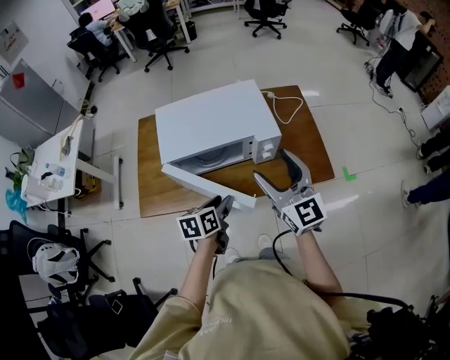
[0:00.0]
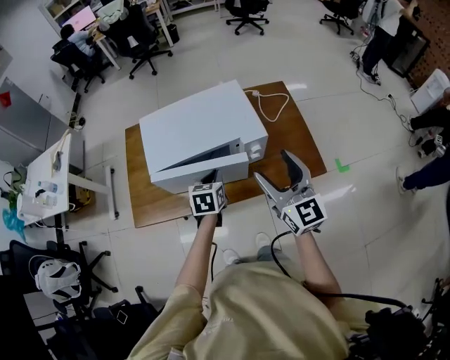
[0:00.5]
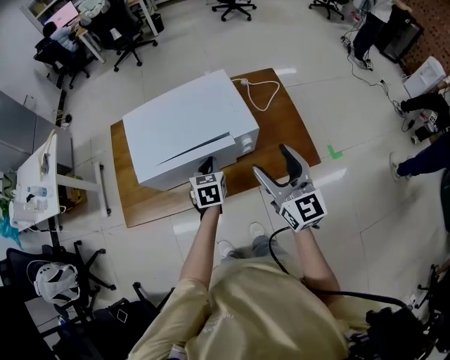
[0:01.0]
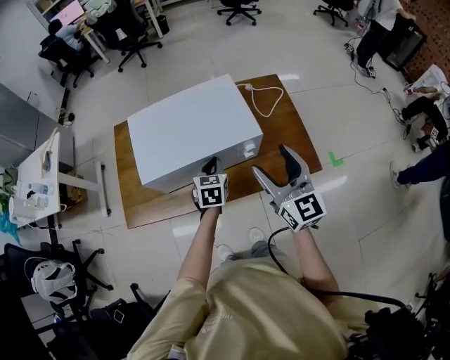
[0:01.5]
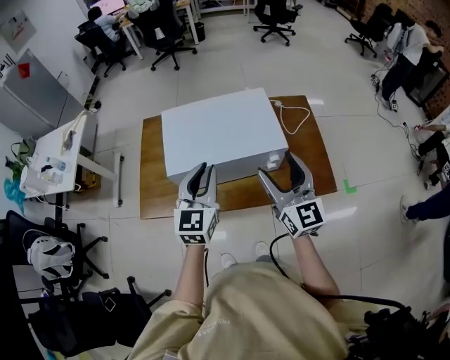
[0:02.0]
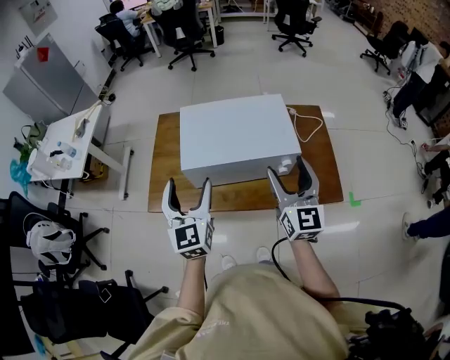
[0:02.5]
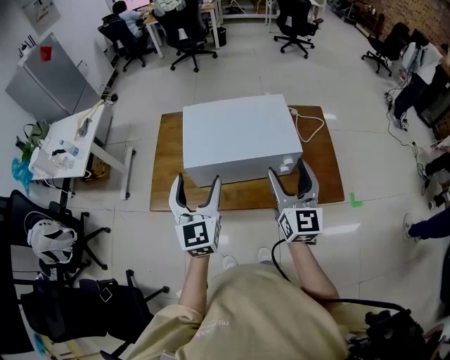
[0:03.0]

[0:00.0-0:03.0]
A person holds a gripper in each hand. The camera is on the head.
0:00.0 to 0:01.5: The left gripper travels forward by some 20 cm, rotates about 30 degrees, and closes its fingers. Meanwhile the right gripper is displaced forward by roughly 10 cm.
0:01.5 to 0:03.0: The right gripper goes roughly 10 cm backward and to the left; the left gripper heads upward, backward and to the left, covering about 30 cm, tips its fingers upward by some 40 degrees, and opens up.

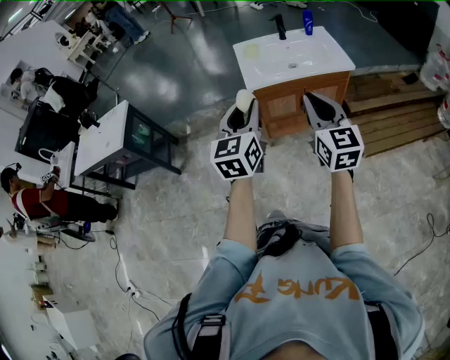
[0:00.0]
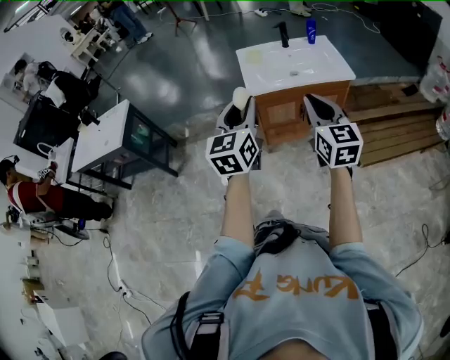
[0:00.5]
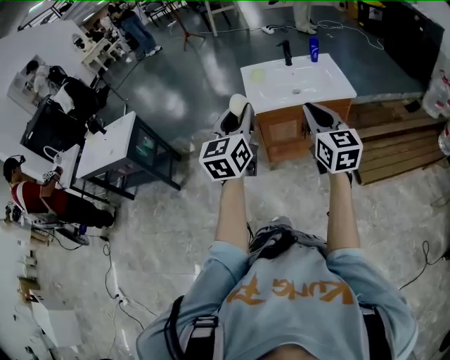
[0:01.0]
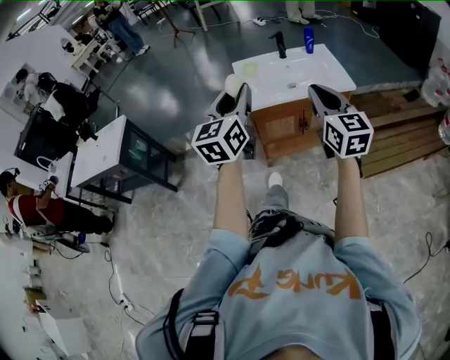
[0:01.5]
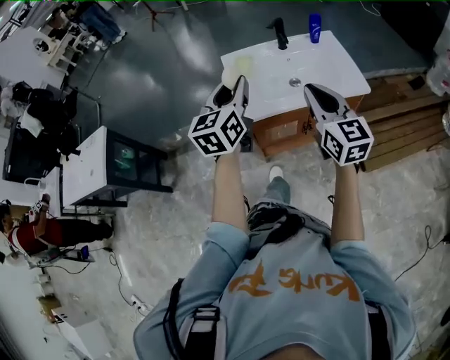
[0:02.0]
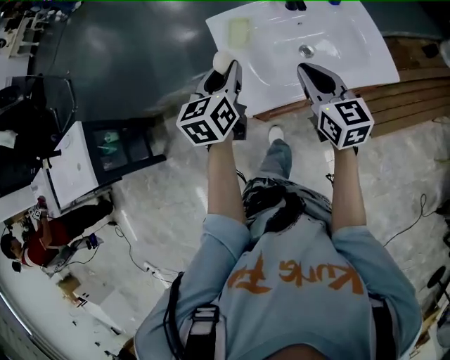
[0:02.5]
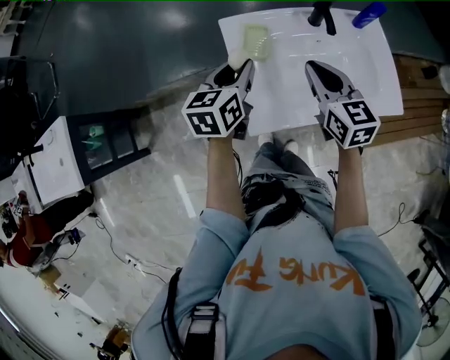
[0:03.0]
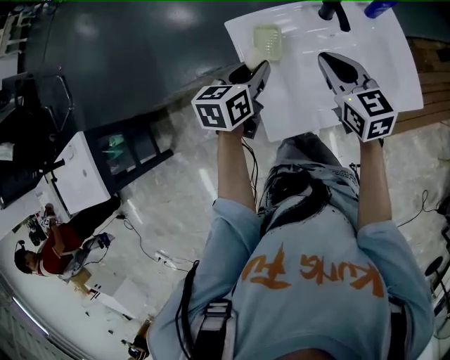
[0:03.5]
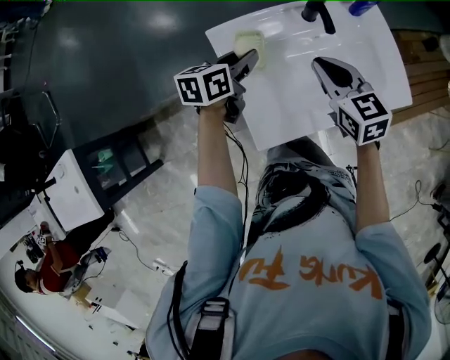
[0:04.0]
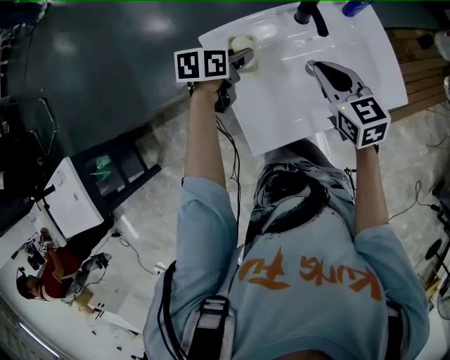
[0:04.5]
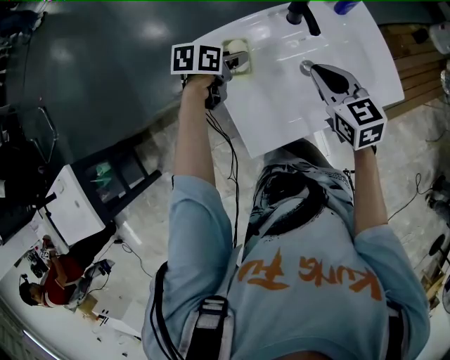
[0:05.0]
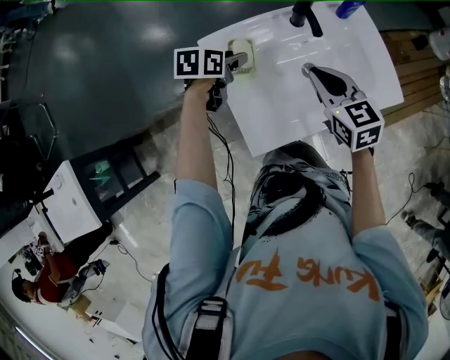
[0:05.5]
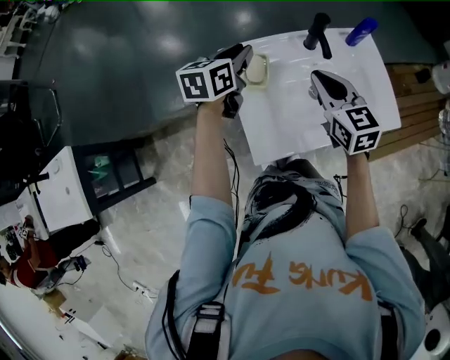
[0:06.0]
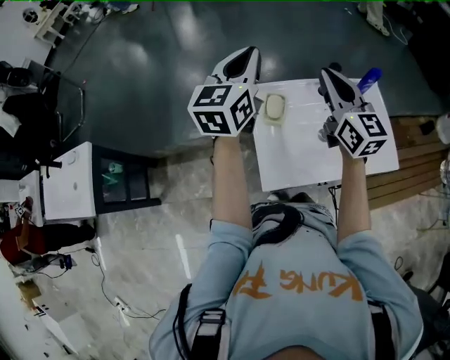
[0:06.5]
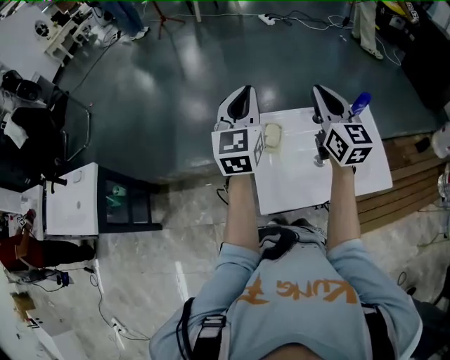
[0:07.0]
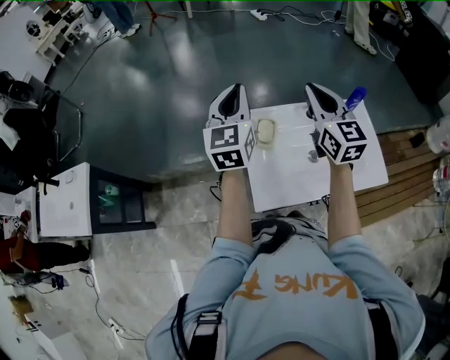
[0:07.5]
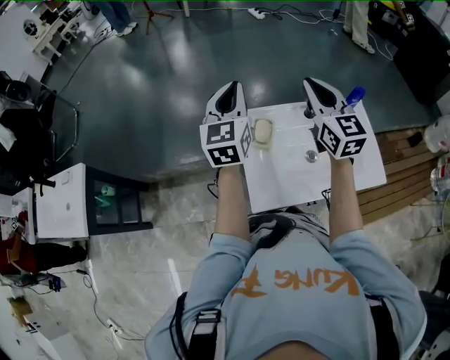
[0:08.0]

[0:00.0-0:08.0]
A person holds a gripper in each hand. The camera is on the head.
0:00.0 to 0:02.0: The two grippers go approximately 30 cm forward.
0:02.0 to 0:04.0: Both grippers travel together forward and downward, roughly 35 cm. The left gripper turns by approximately 40 degrees, while the right gripper changes its angle by roughly 30 degrees.
0:04.0 to 0:06.0: The left gripper is displaced upward by approximately 10 cm.
0:06.0 to 0:08.0: The left gripper is displaced upward by roughly 15 cm, and turns by some 40 degrees. Meanwhile the right gripper shifts approximately 15 cm upward and forward, and turns by approximately 20 degrees.

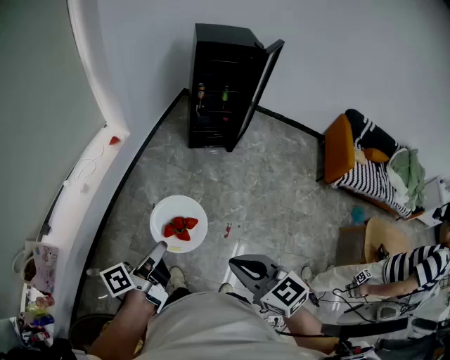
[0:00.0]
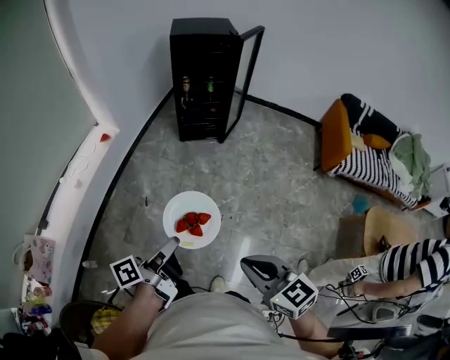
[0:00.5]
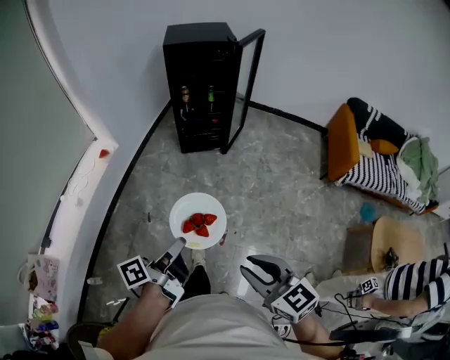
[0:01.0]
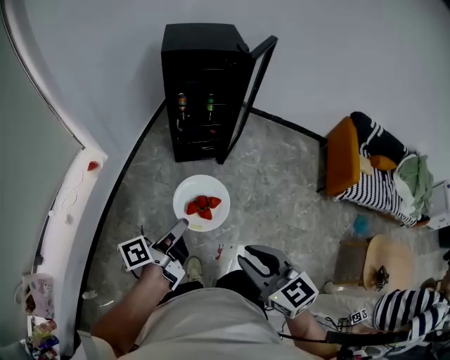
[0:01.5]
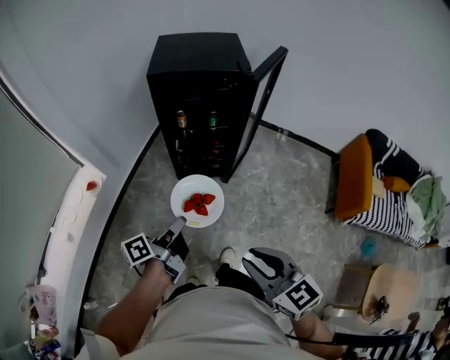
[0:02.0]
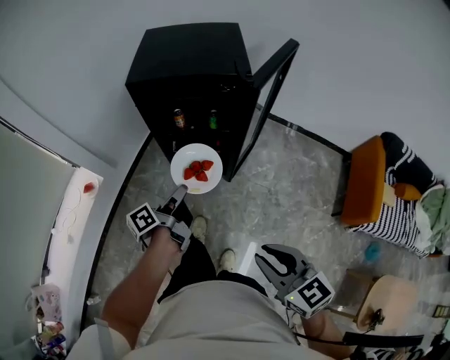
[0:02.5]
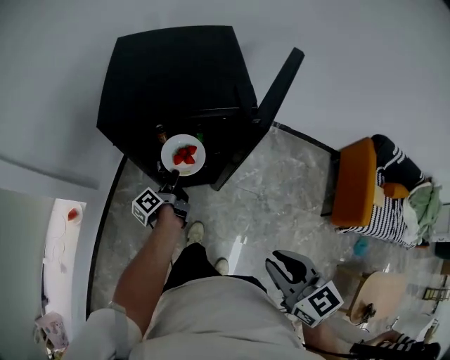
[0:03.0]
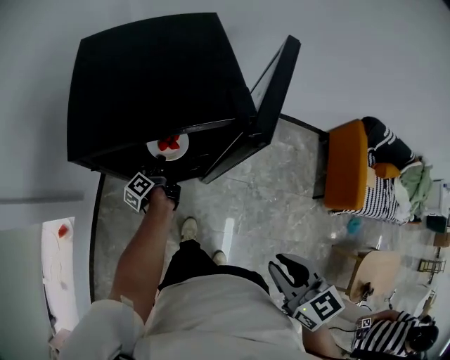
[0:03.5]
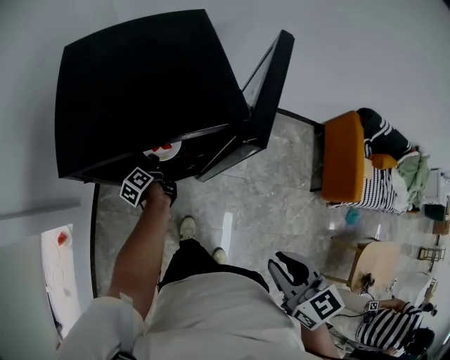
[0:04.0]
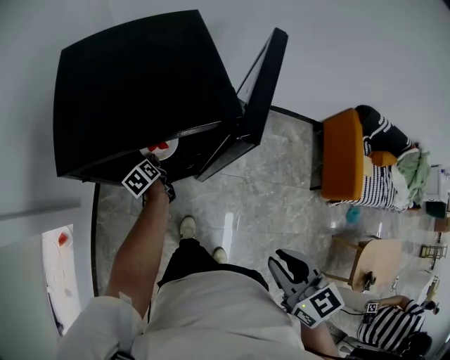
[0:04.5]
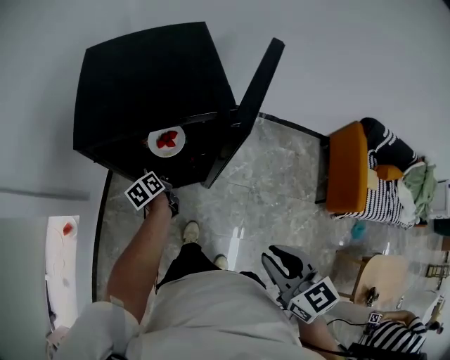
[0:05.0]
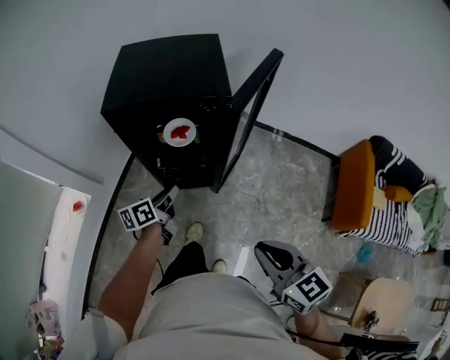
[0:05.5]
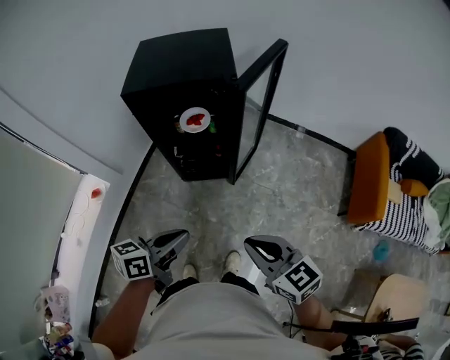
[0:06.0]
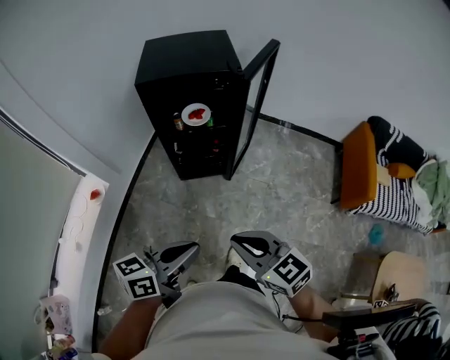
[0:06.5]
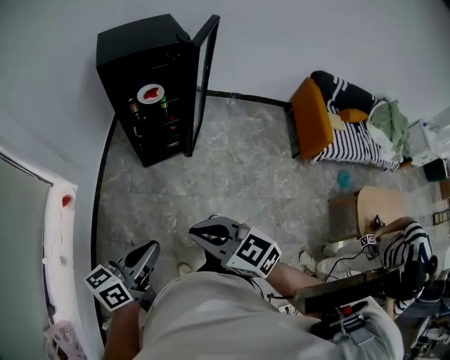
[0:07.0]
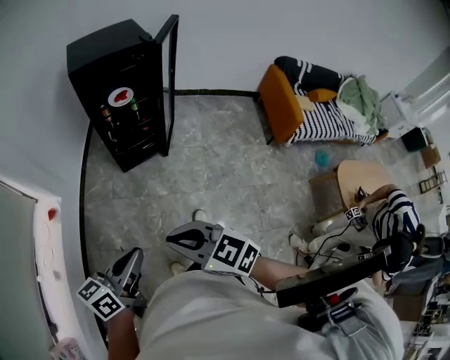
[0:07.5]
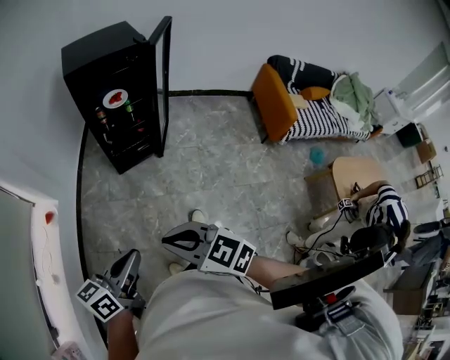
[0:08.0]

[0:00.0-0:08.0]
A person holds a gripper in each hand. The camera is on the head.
0:00.0 to 0:02.0: Both grippers are carried forward and to the right, some 50 cm.
0:02.0 to 0:04.0: The left gripper is displaced forward and downward by roughly 60 cm, and changes its angle by some 30 degrees. The right gripper goes about 30 cm forward, and changes its angle by roughly 30 degrees.
0:04.0 to 0:06.0: The right gripper travels backward by roughly 15 cm, and turns by some 30 degrees; the left gripper travels backward and upward by approximately 50 cm, and changes its angle by some 50 degrees.
0:06.0 to 0:08.0: The two grippers go some 35 cm backward and to the left.

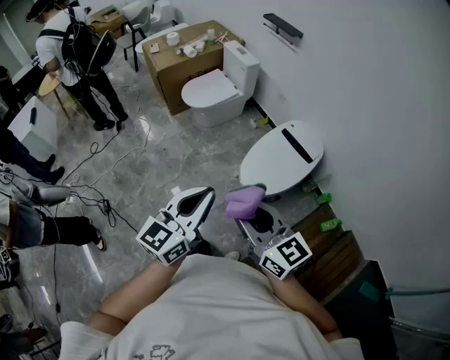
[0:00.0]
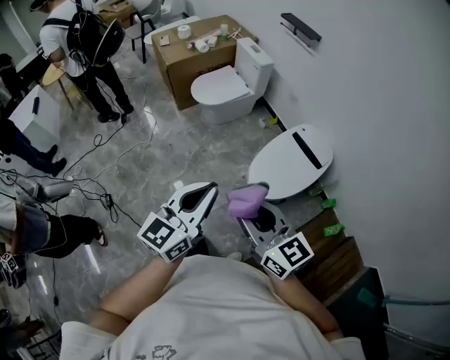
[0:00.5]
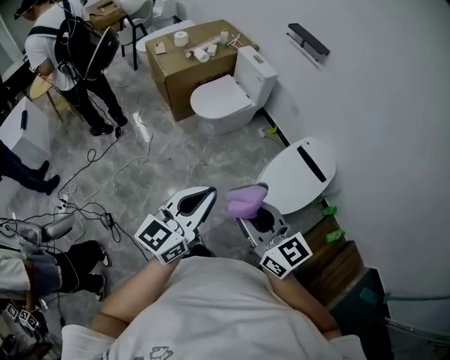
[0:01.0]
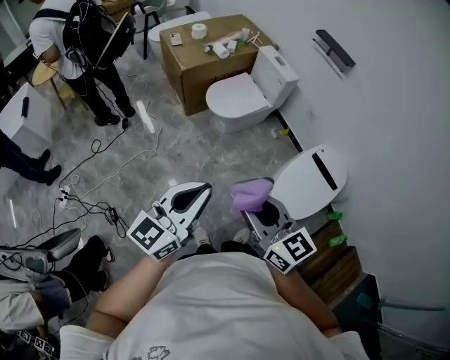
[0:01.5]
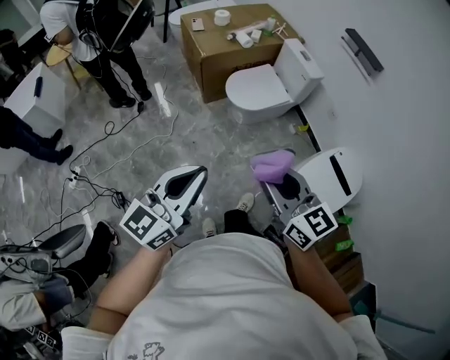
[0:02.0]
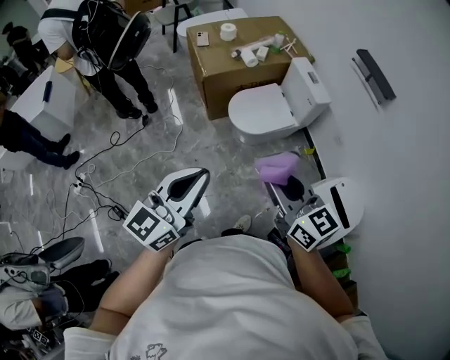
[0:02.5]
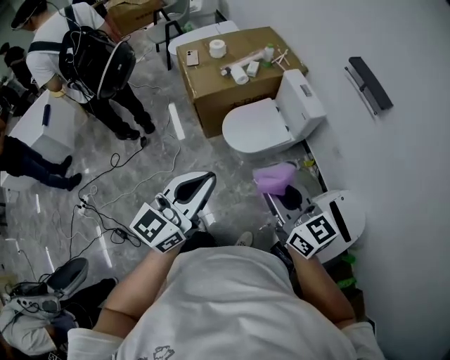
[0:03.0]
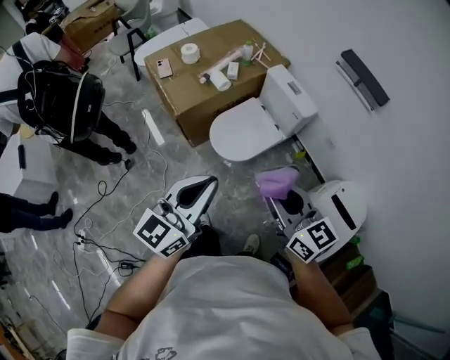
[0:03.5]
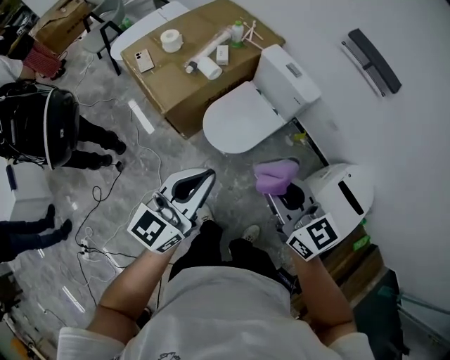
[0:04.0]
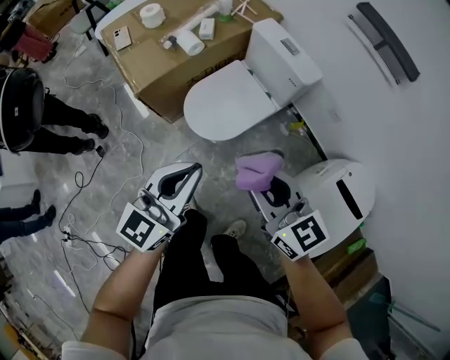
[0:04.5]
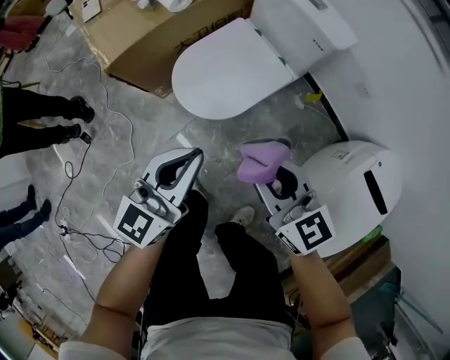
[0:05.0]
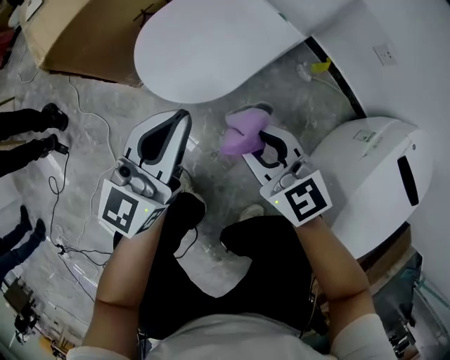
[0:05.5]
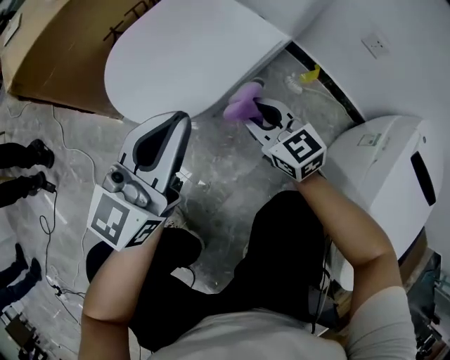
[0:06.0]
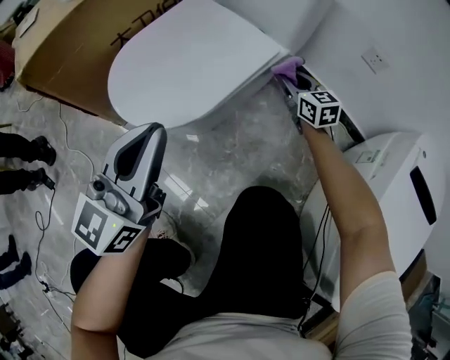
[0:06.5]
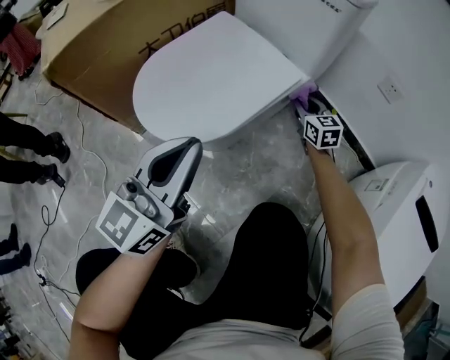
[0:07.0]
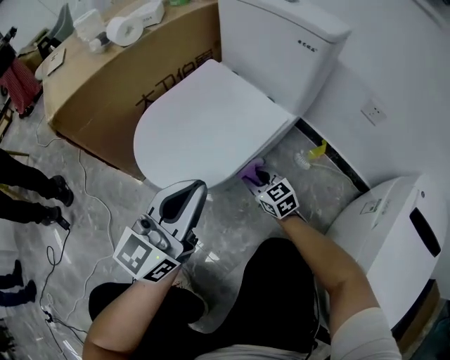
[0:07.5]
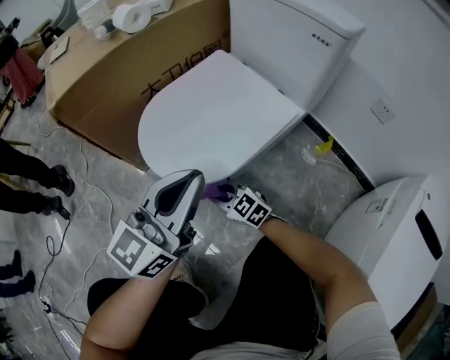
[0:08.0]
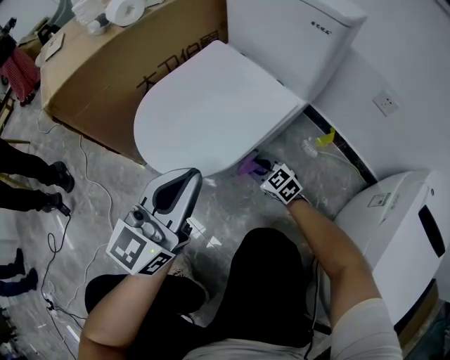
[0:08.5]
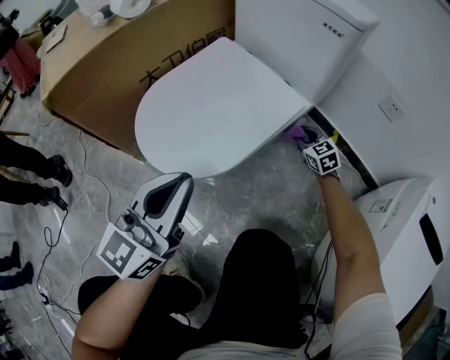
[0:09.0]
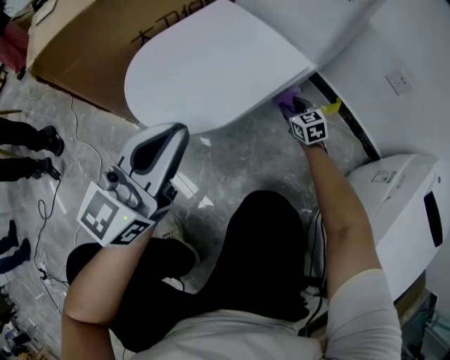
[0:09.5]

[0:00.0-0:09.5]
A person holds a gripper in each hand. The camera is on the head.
0:00.0 to 0:02.0: The left gripper shifts about 40 cm to the left and forward. Meanwhile the right gripper shifts approximately 40 cm forward and to the left.
0:02.0 to 0:04.0: The grippers both shift forward by about 40 cm.
0:04.0 to 0:05.5: The grippers both shift downward by about 50 cm.
0:05.5 to 0:07.5: The left gripper is displaced downward by roughly 10 cm, while the right gripper is displaced downward and forward by about 35 cm.
0:07.5 to 0:09.5: The right gripper moves left and right over approximately 30 cm, changing direction 2 times.
